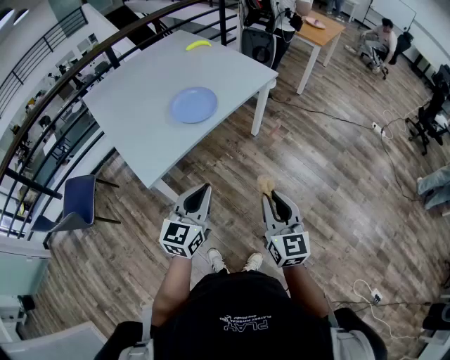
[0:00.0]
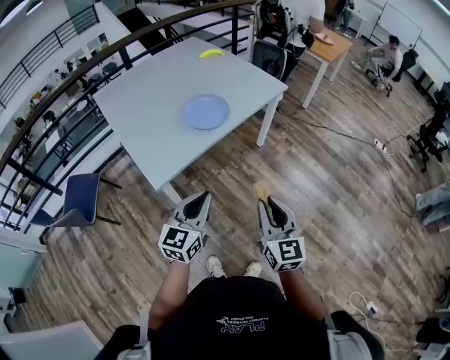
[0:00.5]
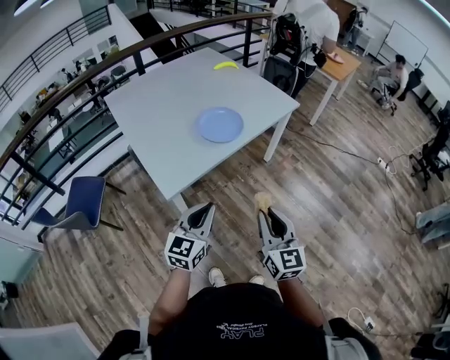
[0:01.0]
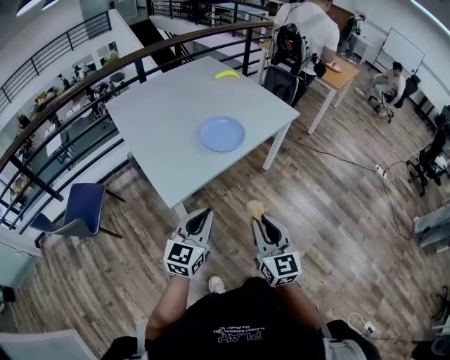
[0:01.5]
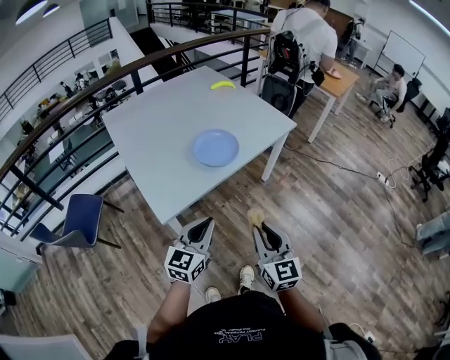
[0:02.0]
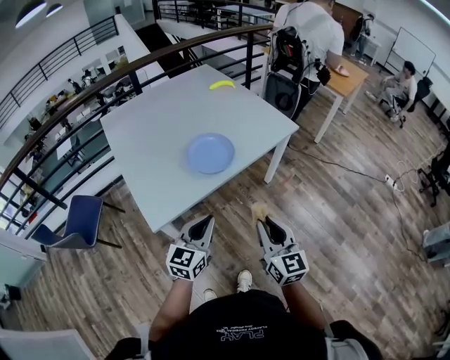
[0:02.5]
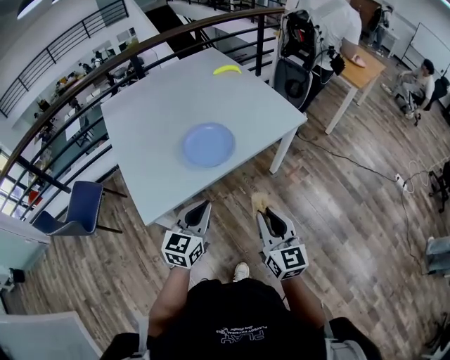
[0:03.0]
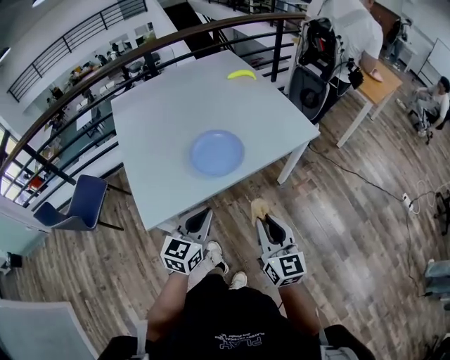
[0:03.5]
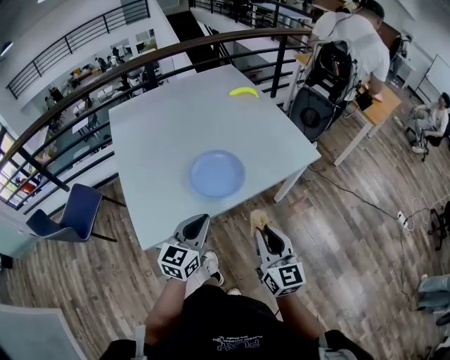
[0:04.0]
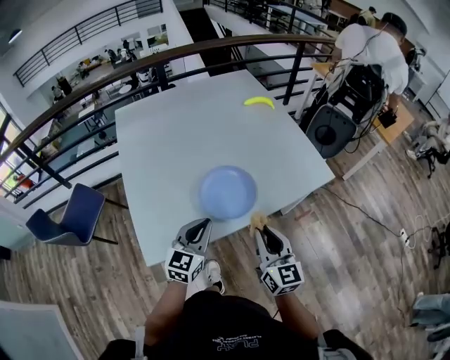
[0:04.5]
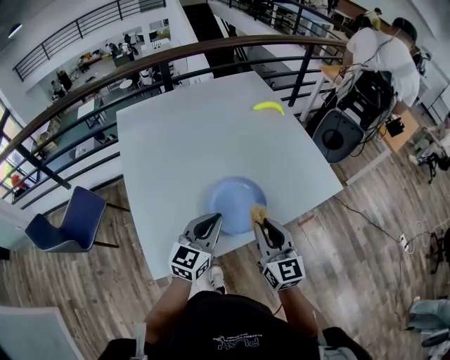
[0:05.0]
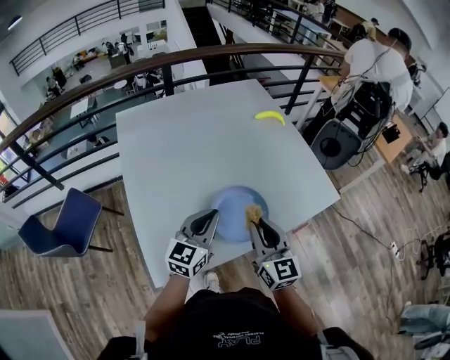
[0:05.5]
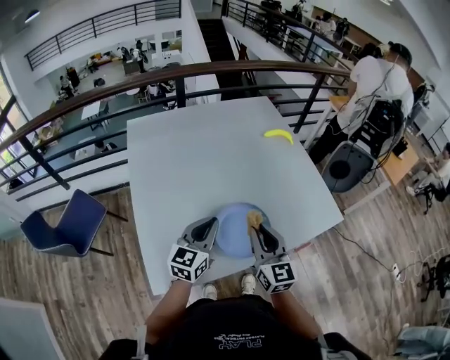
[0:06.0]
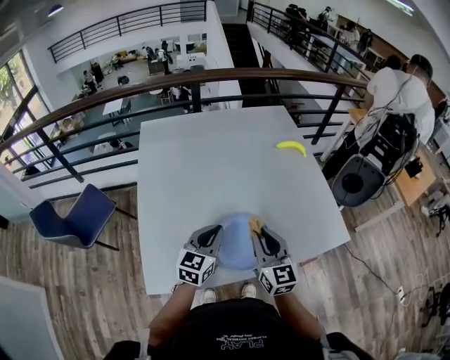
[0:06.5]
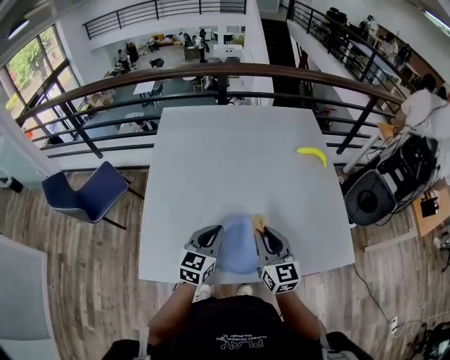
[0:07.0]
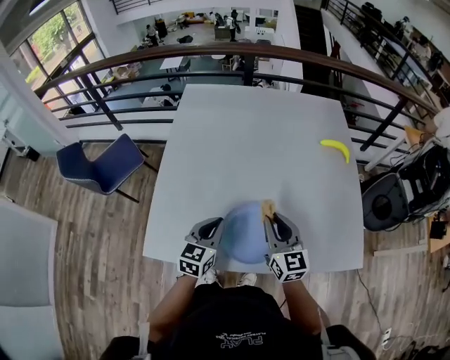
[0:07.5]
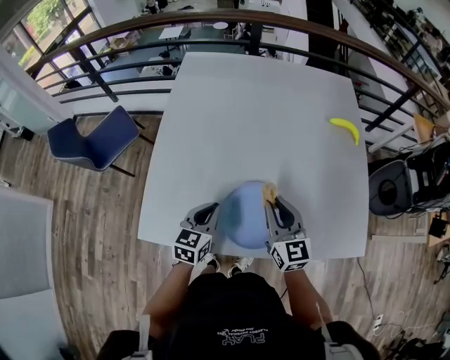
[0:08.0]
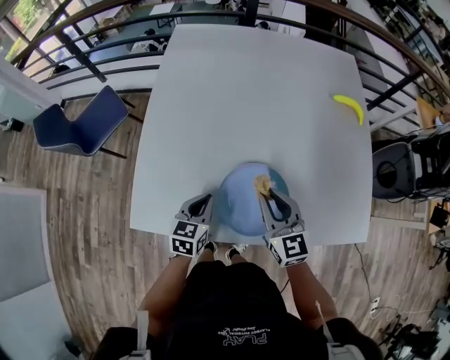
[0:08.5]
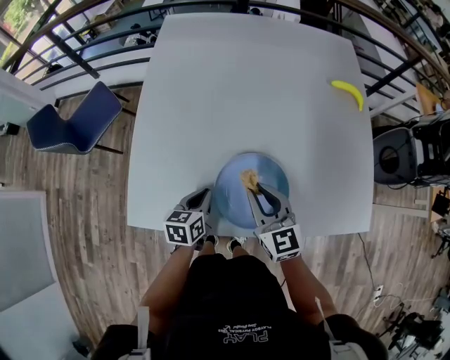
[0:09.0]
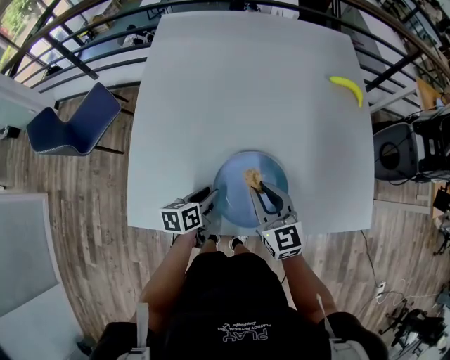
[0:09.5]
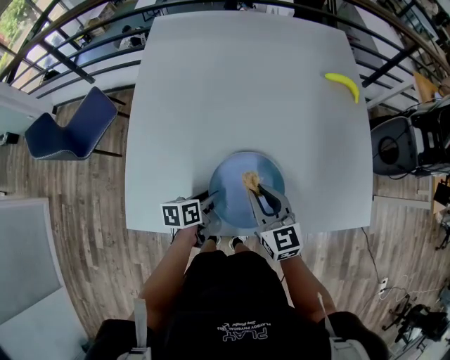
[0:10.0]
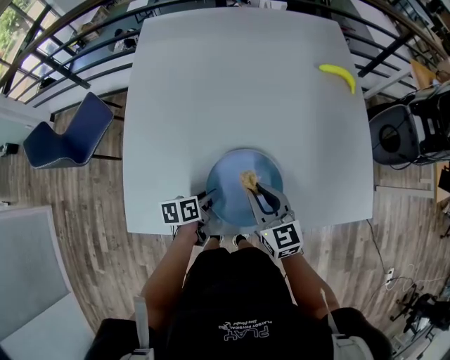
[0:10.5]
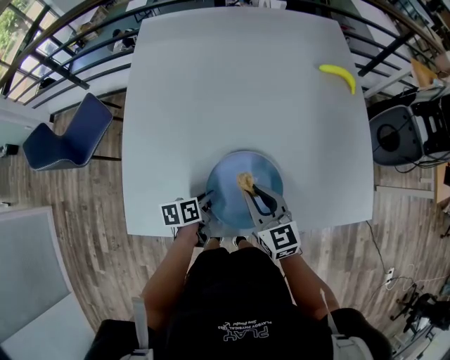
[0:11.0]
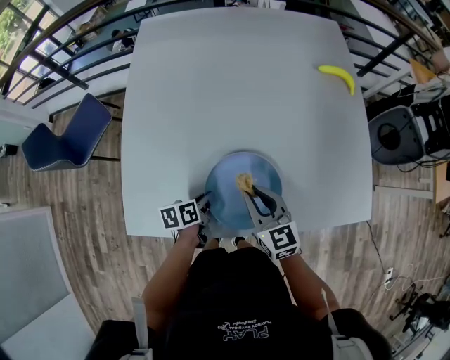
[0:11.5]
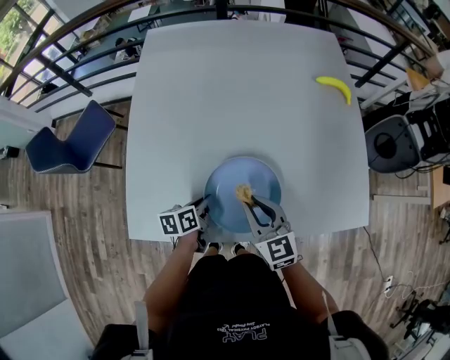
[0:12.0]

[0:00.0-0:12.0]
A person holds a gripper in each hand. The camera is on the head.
0:00.0 to 0:02.0: The right gripper moves to the left and forward, some 10 cm. The left gripper moves to the left, about 5 cm.
0:02.0 to 0:04.0: The grippers both shift forward by approximately 25 cm.
0:04.0 to 0:06.0: The grippers both shift forward and to the left by approximately 30 cm.
0:06.0 to 0:08.0: The right gripper shifts by approximately 15 cm, and swivels some 30 degrees, while the left gripper is displaced downward by roughly 15 cm, and changes its angle by some 30 degrees.
0:08.0 to 0:10.0: The left gripper heads downward, covering roughly 15 cm, rotates about 40 degrees, and opens. Meanwhile the right gripper heads downward, covering some 10 cm.
0:10.0 to 0:12.0: The left gripper closes its fingers.

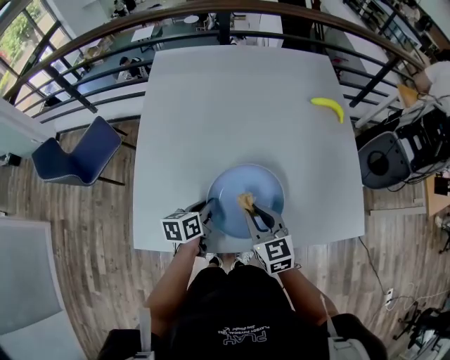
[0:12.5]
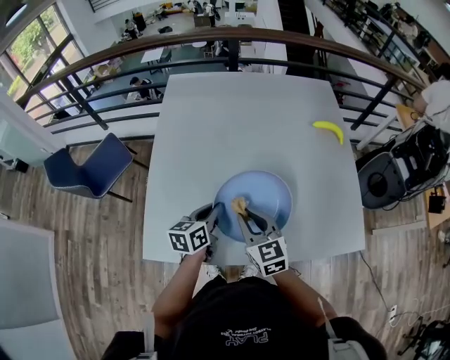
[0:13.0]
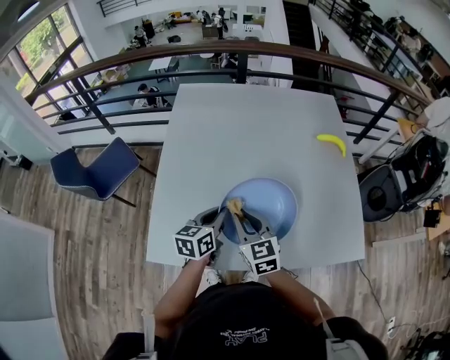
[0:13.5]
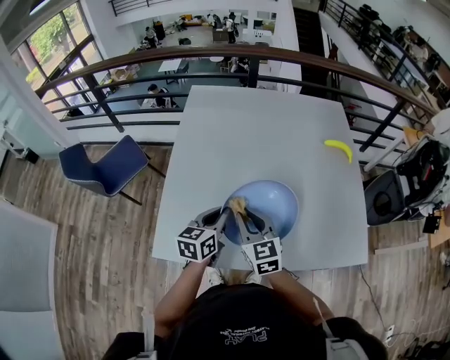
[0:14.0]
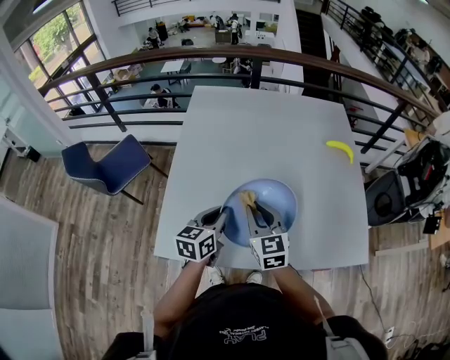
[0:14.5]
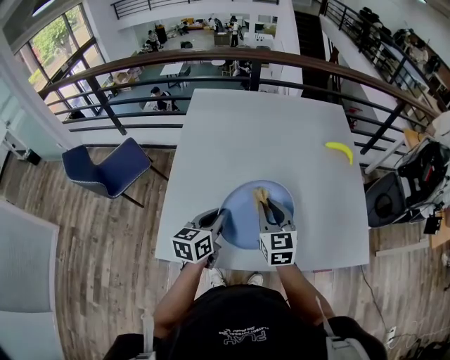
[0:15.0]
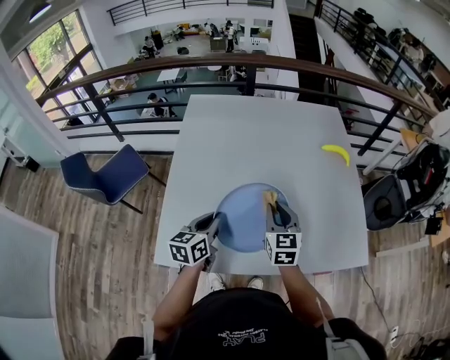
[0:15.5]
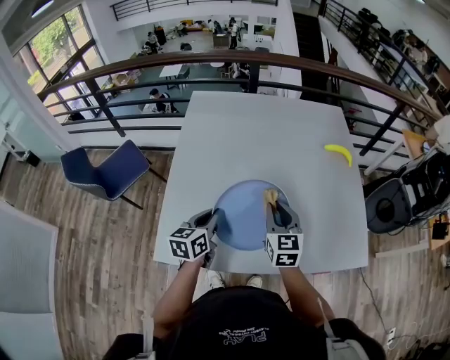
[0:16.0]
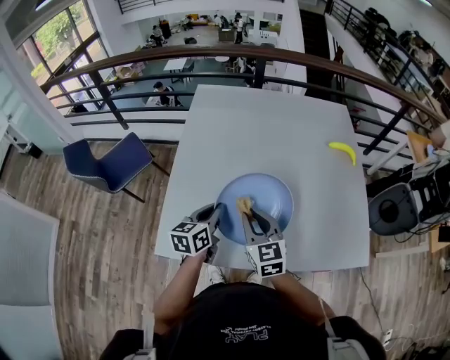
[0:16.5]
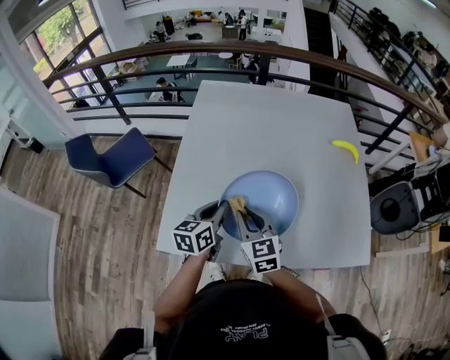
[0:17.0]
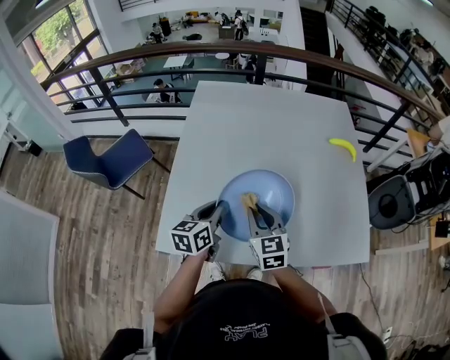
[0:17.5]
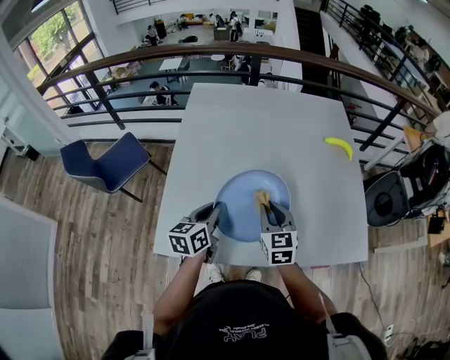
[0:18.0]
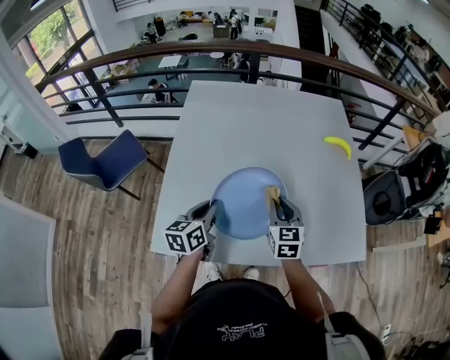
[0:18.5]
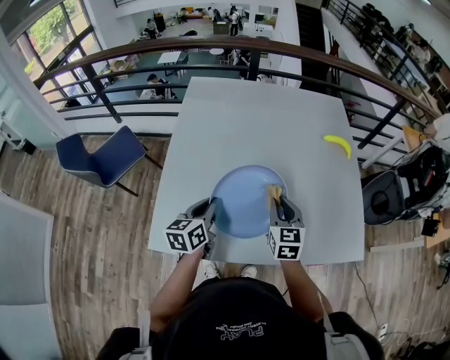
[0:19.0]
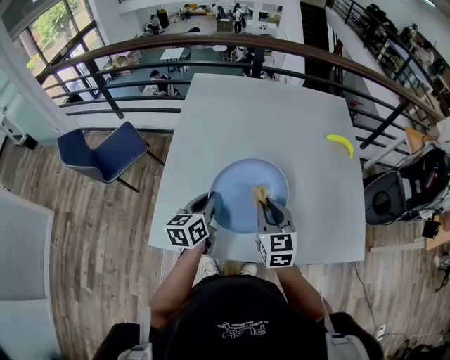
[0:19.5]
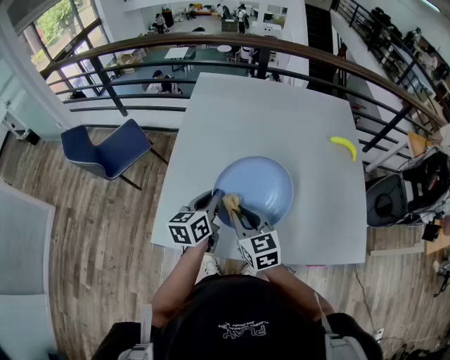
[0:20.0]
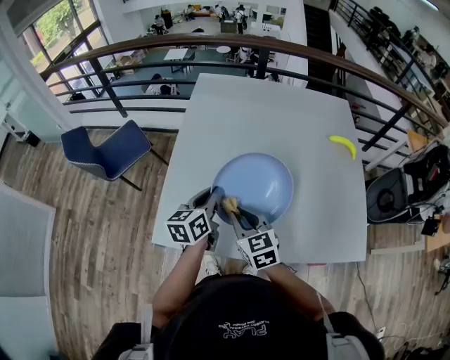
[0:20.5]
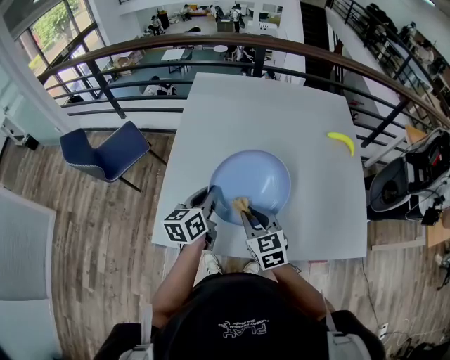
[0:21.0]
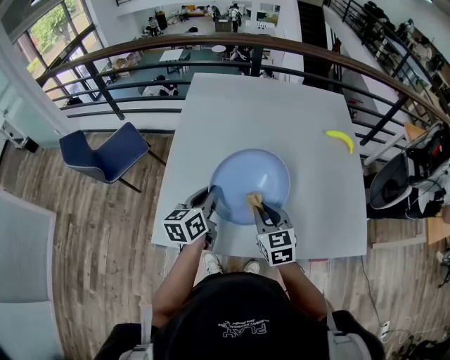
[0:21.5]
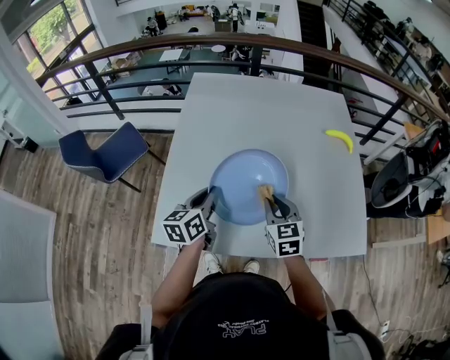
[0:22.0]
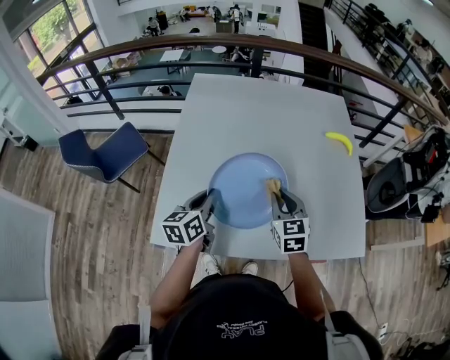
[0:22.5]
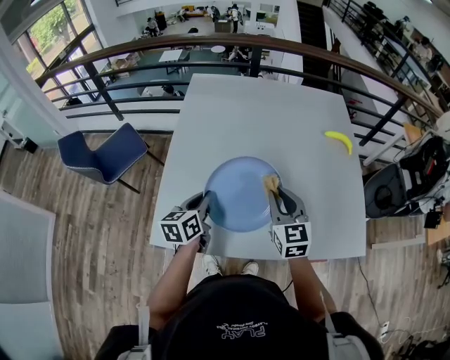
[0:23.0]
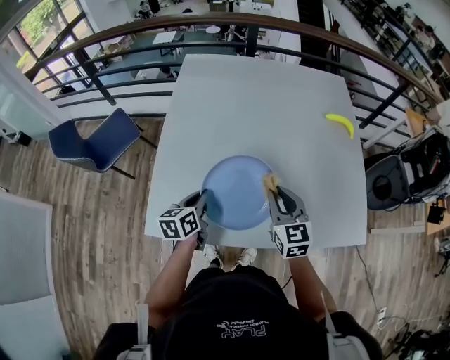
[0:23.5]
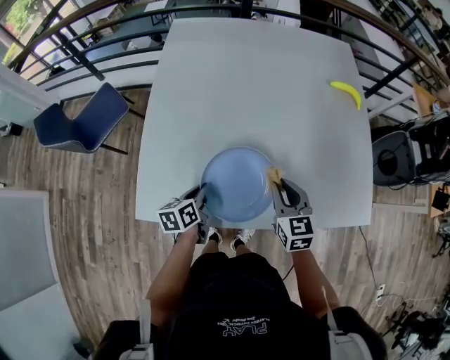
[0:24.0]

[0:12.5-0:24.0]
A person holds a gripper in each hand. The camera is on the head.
0:12.5 to 0:14.5: The right gripper shifts about 10 cm upward and to the left; the left gripper is displaced upward by some 15 cm, and rotates about 20 degrees.
0:14.5 to 0:16.5: The right gripper travels to the right and back again, some 5 cm each way.
0:16.5 to 0:18.5: The right gripper goes approximately 10 cm to the right.
0:18.5 to 0:20.0: The right gripper shifts roughly 15 cm to the left and backward, and changes its angle by about 20 degrees.
0:20.0 to 0:22.0: The right gripper is displaced to the right by approximately 10 cm.
0:22.0 to 0:24.0: The left gripper moves downward, about 20 cm, and changes its angle by some 20 degrees, while the right gripper moves downward and to the right, some 10 cm.

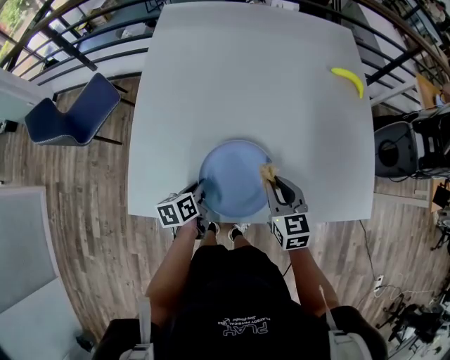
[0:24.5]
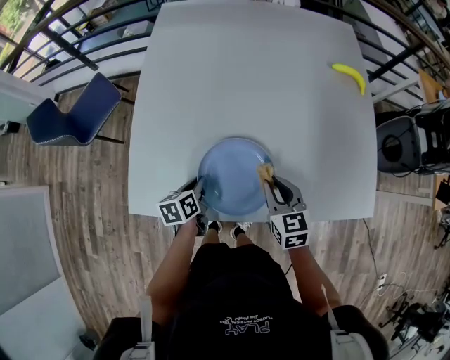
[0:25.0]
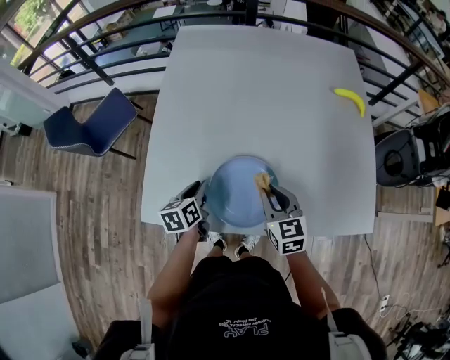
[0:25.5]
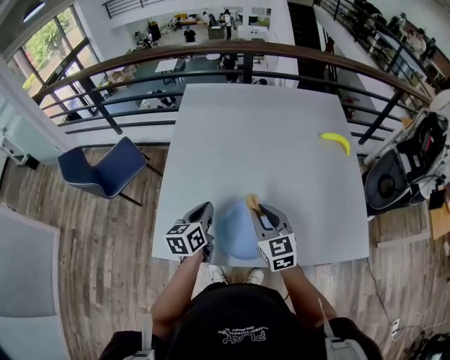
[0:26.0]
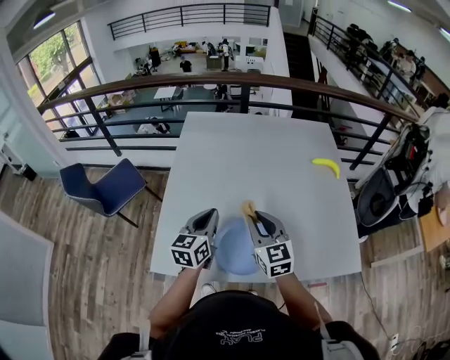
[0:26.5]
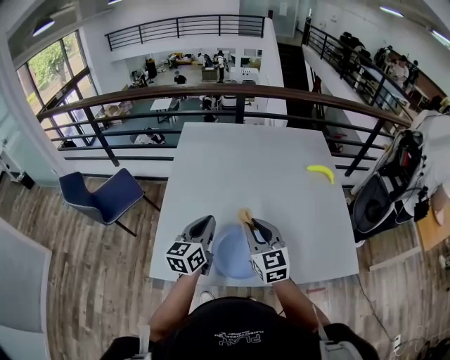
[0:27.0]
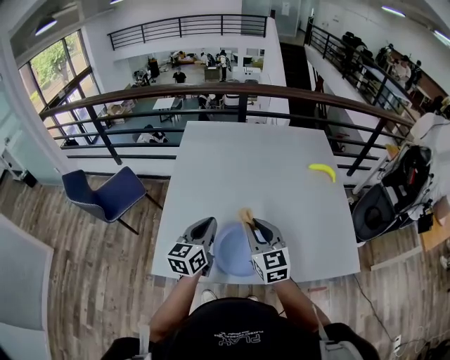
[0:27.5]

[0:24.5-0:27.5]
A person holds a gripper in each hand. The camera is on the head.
0:24.5 to 0:26.0: The right gripper moves upward and to the left, approximately 15 cm. Meanwhile the left gripper travels upward by approximately 20 cm, and turns by about 30 degrees.
0:26.0 to 0:27.5: The grippers both shift upward by about 10 cm. The left gripper swivels some 20 degrees.
